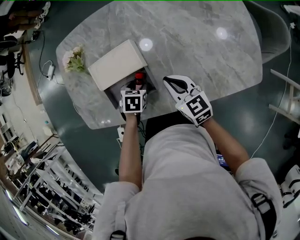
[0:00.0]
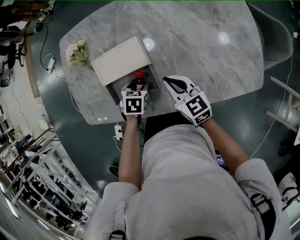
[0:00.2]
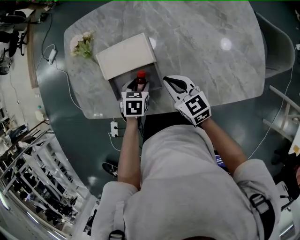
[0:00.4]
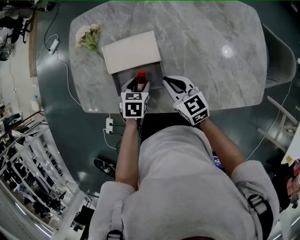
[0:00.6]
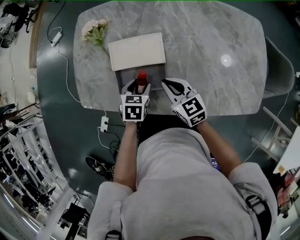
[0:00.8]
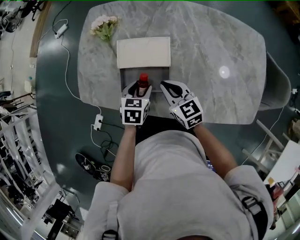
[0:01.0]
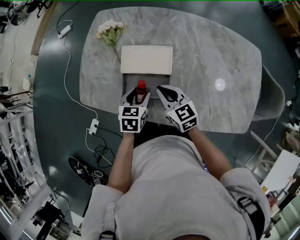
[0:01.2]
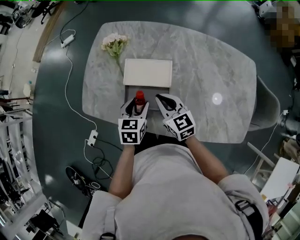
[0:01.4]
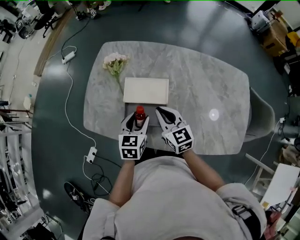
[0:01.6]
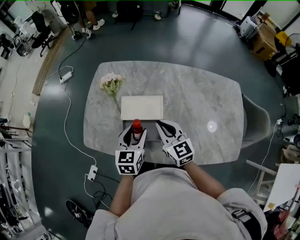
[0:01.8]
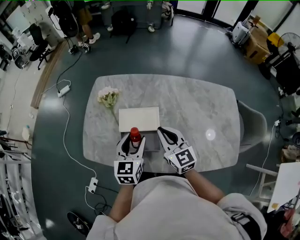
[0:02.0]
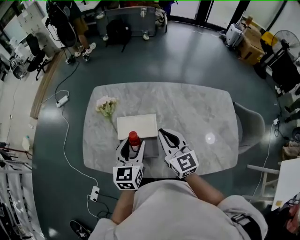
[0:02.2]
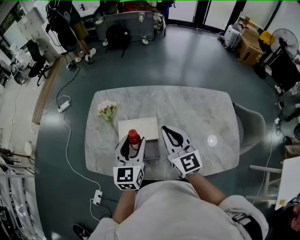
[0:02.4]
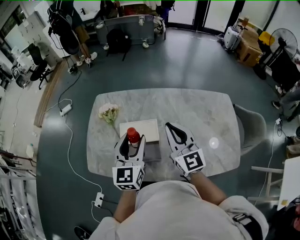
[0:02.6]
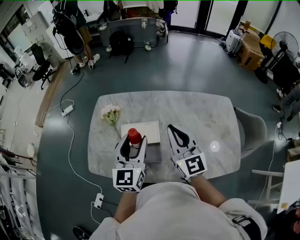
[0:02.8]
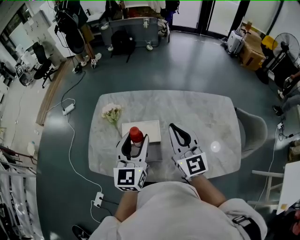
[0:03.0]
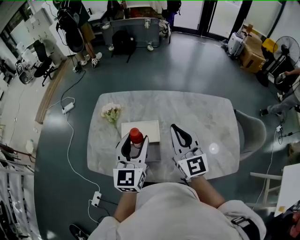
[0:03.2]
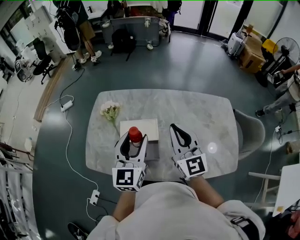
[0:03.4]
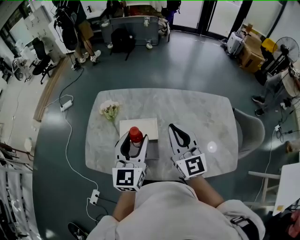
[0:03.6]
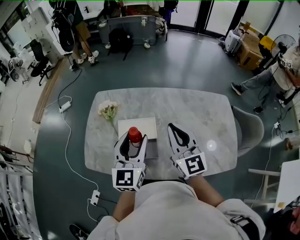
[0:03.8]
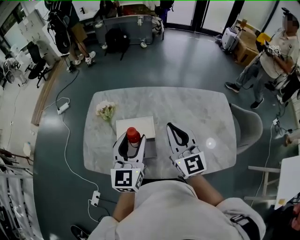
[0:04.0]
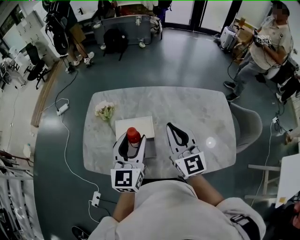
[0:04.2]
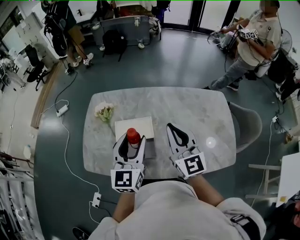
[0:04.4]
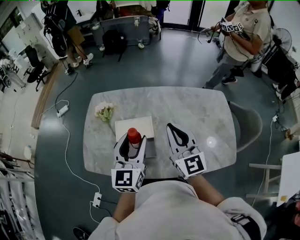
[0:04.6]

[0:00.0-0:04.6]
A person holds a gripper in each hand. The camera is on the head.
0:00.0 to 0:01.6: The right gripper travels to the left and upward by about 15 cm; the left gripper heads upward, covering approximately 20 cm, and points its fingers approximately 40 degrees further upward.
0:01.6 to 0:03.0: The left gripper goes approximately 20 cm upward, and points its fingers some 30 degrees further upward. The right gripper travels upward and to the right by approximately 20 cm, and changes its angle by approximately 30 degrees.
0:03.0 to 0:04.6: The grippers stay close to where they were, moving slightly.

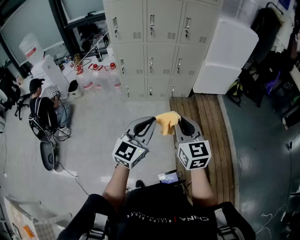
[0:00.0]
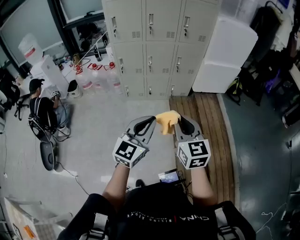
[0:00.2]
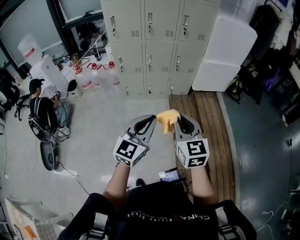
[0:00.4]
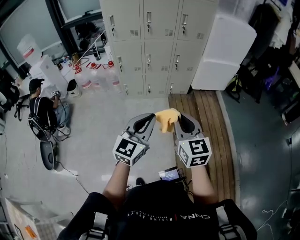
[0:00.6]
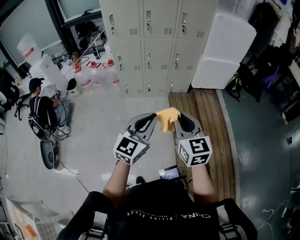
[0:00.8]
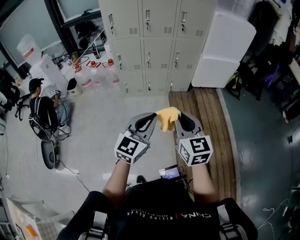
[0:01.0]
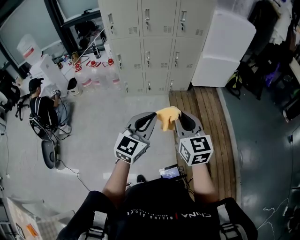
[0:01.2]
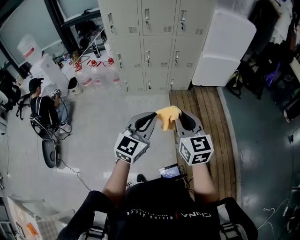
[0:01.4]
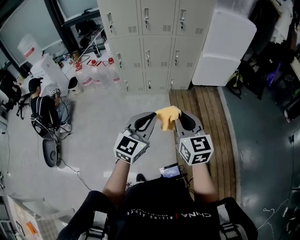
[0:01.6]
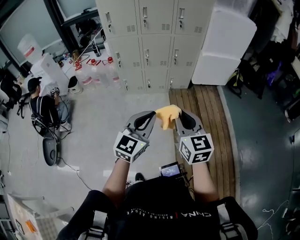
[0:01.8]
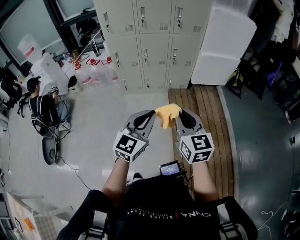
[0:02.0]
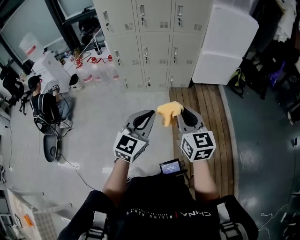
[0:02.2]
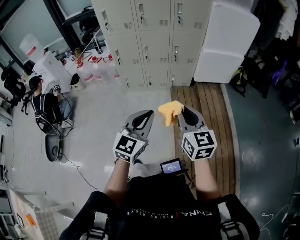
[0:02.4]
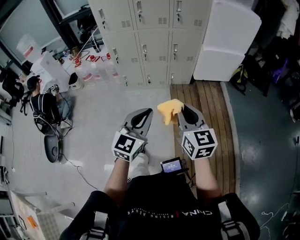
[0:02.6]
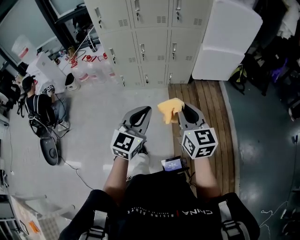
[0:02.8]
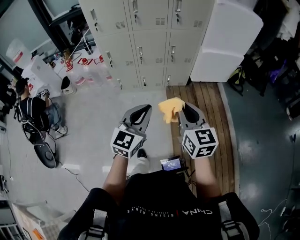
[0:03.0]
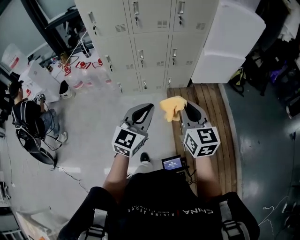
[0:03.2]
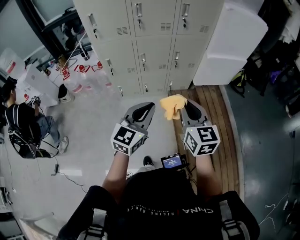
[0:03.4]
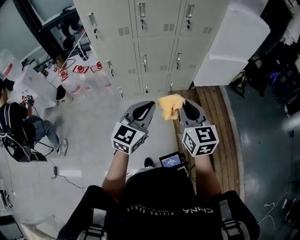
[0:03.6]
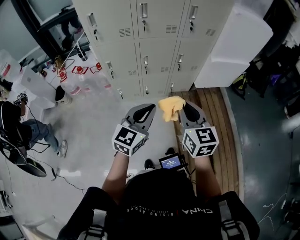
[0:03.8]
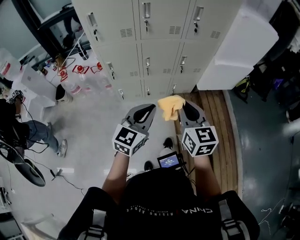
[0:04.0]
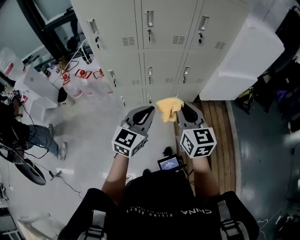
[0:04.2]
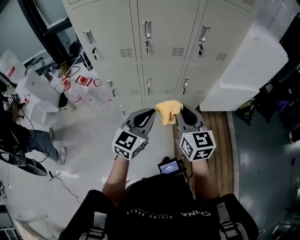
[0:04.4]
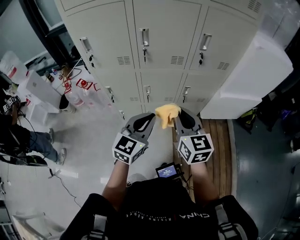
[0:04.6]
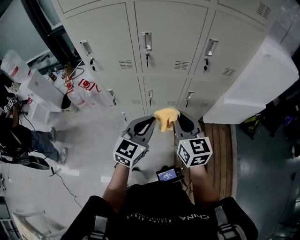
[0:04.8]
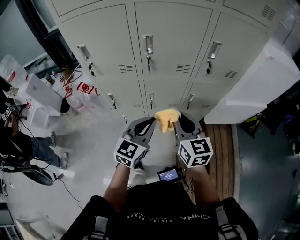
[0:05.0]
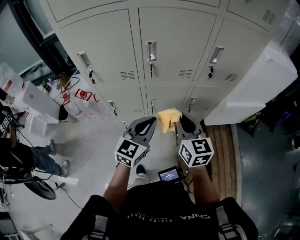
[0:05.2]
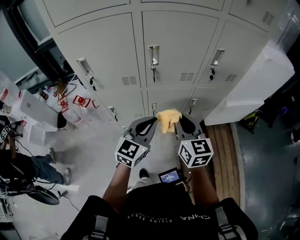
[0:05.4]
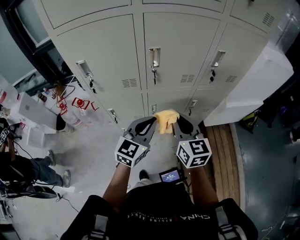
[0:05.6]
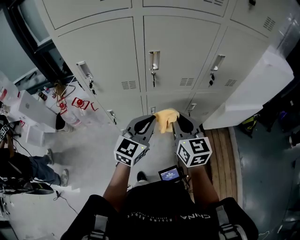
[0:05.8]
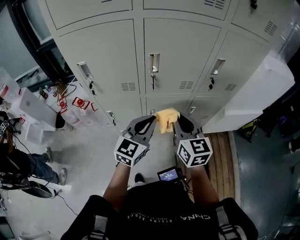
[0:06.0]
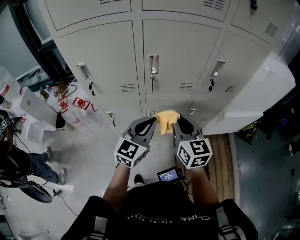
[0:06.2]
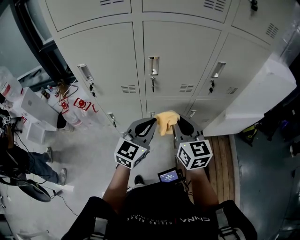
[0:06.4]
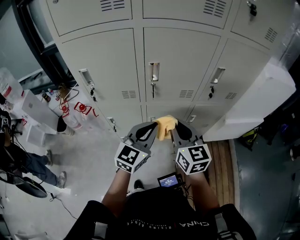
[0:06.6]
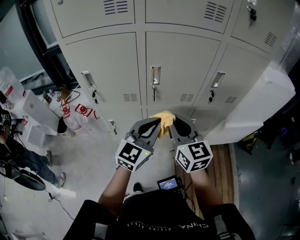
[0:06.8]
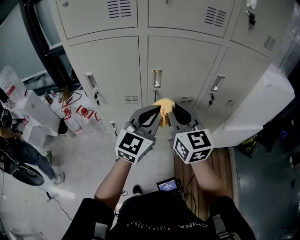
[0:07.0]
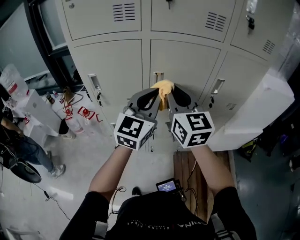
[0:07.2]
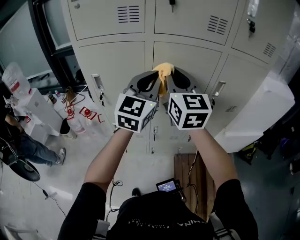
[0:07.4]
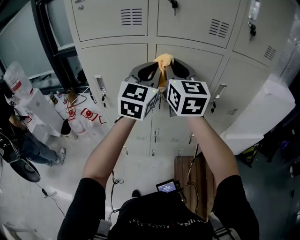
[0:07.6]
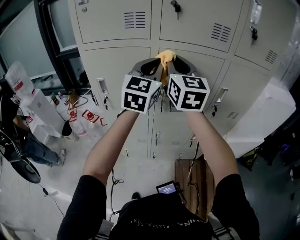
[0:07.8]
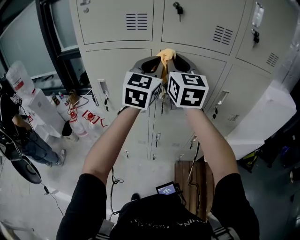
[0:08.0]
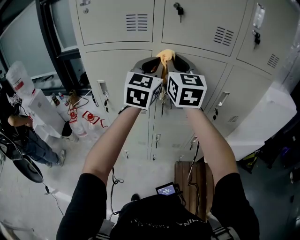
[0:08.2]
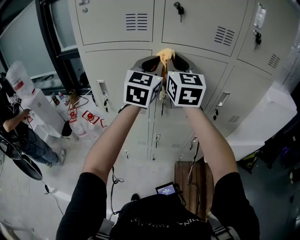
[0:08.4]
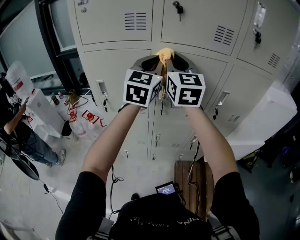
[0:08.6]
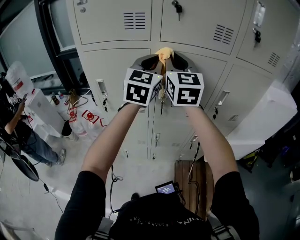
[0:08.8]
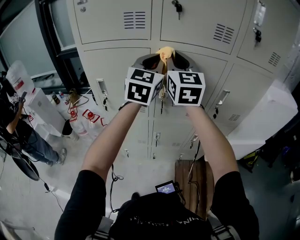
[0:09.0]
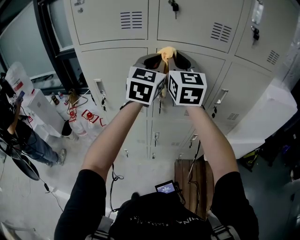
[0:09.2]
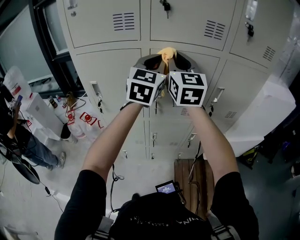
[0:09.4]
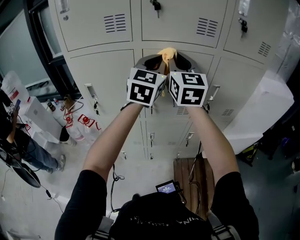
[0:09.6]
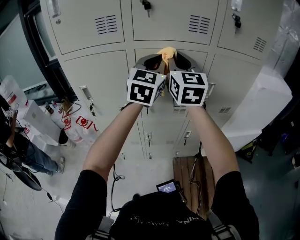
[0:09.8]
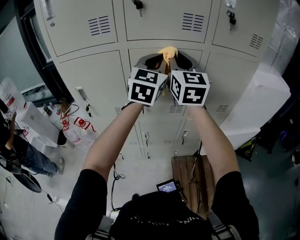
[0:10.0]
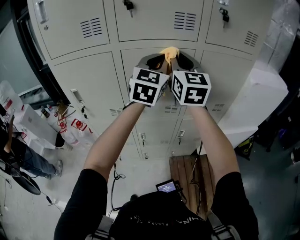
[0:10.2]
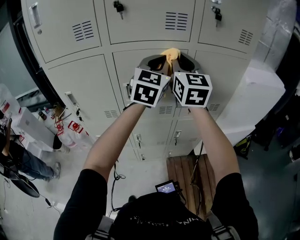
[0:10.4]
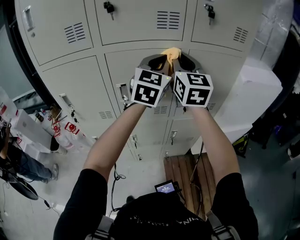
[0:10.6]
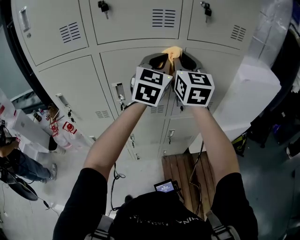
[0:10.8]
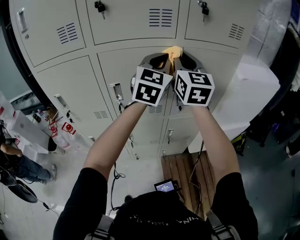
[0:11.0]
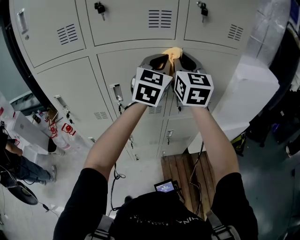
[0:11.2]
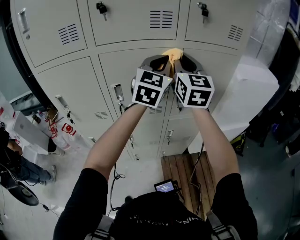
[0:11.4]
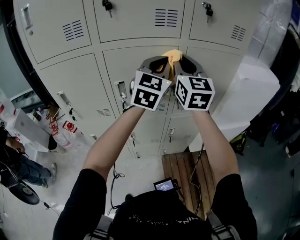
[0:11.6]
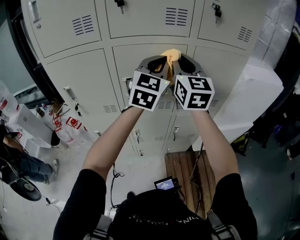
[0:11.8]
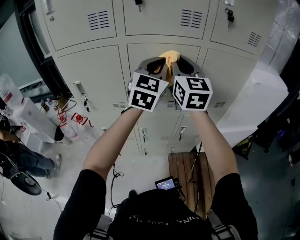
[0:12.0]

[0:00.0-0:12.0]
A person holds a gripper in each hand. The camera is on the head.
0:00.0 to 0:01.6: There are only small adjustments of the grippers.
0:01.6 to 0:03.0: Both grippers move forward, about 15 cm.
0:03.0 to 0:04.4: The left gripper travels forward by approximately 35 cm; the right gripper travels forward and to the left by approximately 35 cm.
0:04.4 to 0:06.0: The left gripper heads forward, covering some 20 cm; the right gripper travels forward and to the left by approximately 20 cm.
0:06.0 to 0:07.6: The two grippers go some 30 cm upward and forward. The right gripper turns by approximately 20 degrees; the left gripper rotates some 20 degrees.
0:07.6 to 0:09.0: The left gripper shifts approximately 5 cm forward, while the right gripper moves approximately 5 cm.
0:09.0 to 0:10.4: Both grippers move to the right, roughly 20 cm.
0:10.4 to 0:12.0: The right gripper ends up roughly 5 cm from where it was; the left gripper ends up approximately 5 cm from where it was.

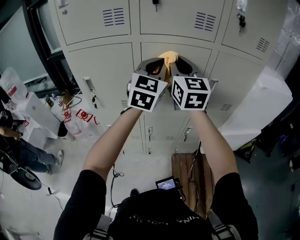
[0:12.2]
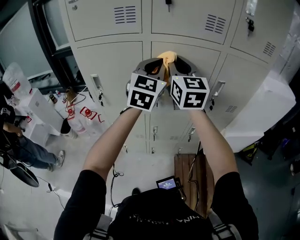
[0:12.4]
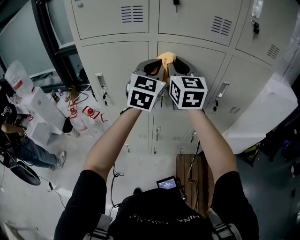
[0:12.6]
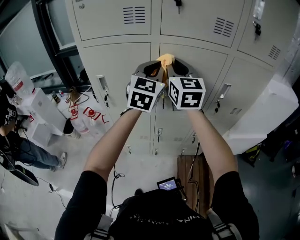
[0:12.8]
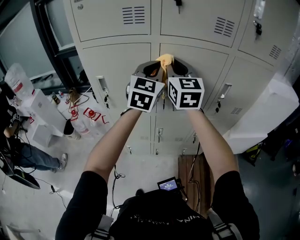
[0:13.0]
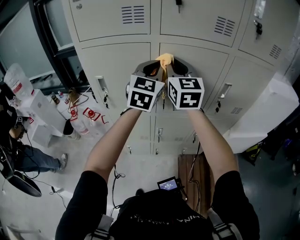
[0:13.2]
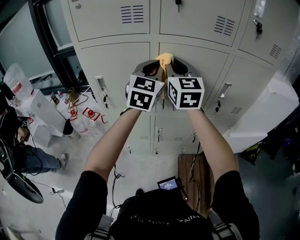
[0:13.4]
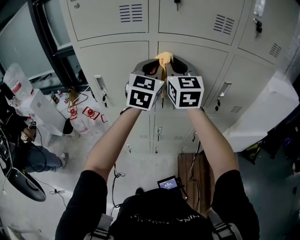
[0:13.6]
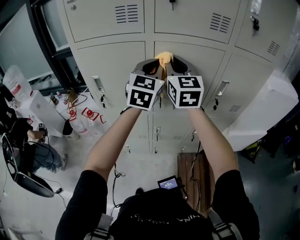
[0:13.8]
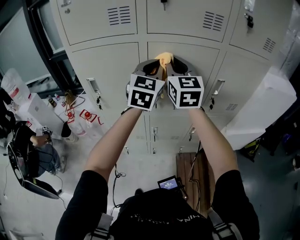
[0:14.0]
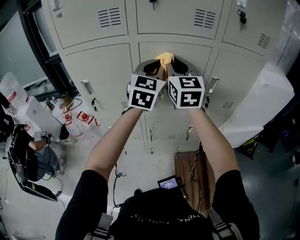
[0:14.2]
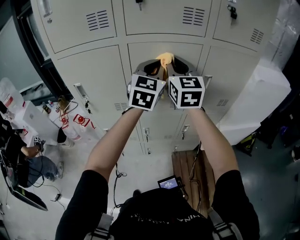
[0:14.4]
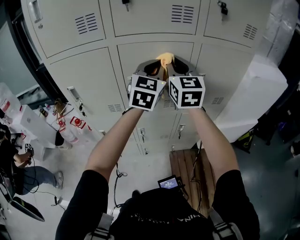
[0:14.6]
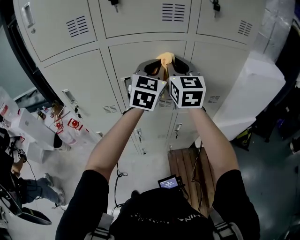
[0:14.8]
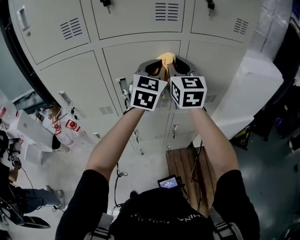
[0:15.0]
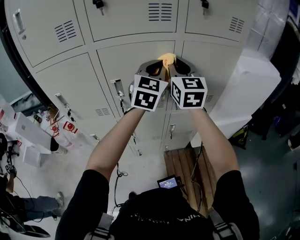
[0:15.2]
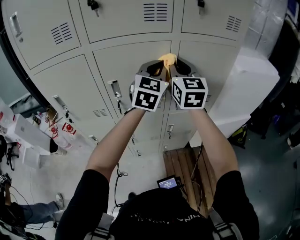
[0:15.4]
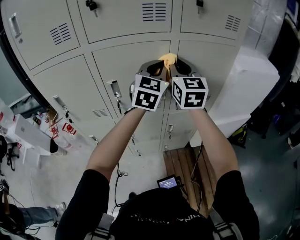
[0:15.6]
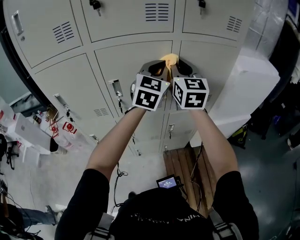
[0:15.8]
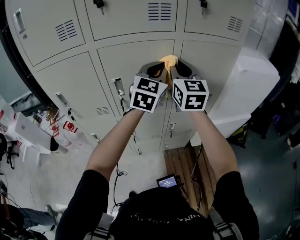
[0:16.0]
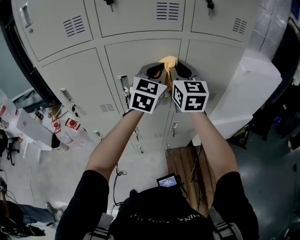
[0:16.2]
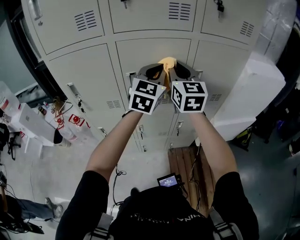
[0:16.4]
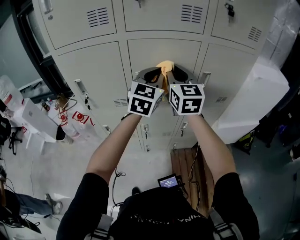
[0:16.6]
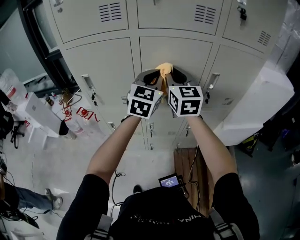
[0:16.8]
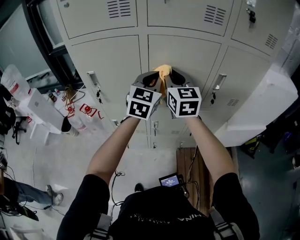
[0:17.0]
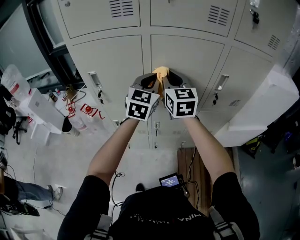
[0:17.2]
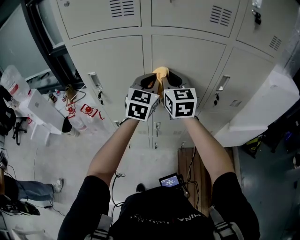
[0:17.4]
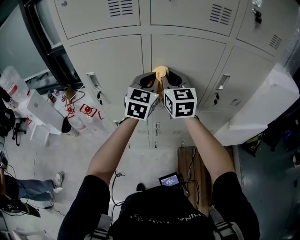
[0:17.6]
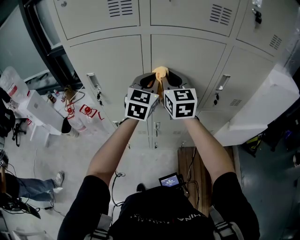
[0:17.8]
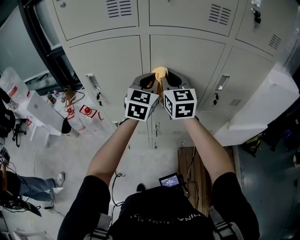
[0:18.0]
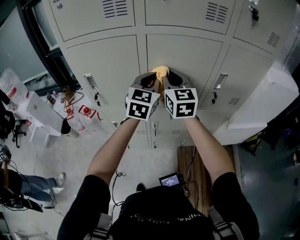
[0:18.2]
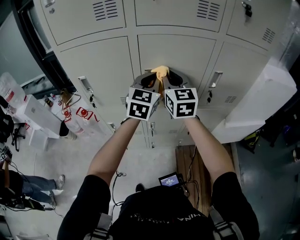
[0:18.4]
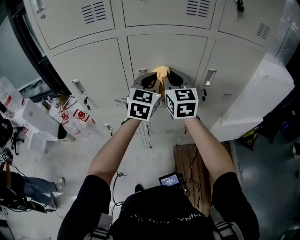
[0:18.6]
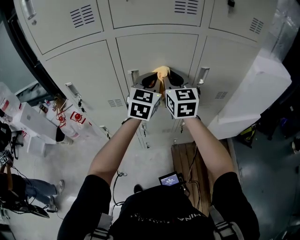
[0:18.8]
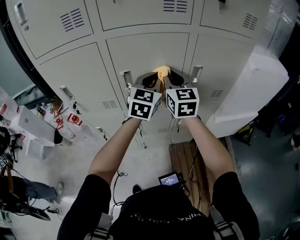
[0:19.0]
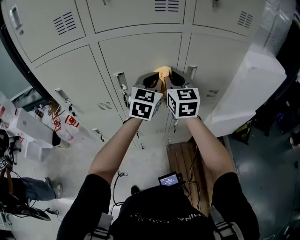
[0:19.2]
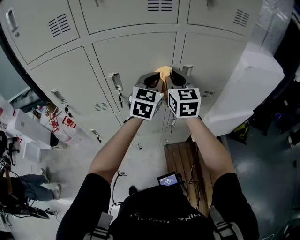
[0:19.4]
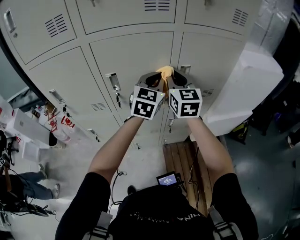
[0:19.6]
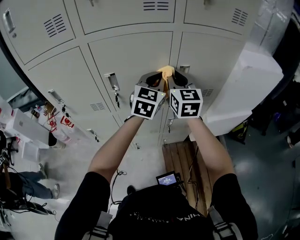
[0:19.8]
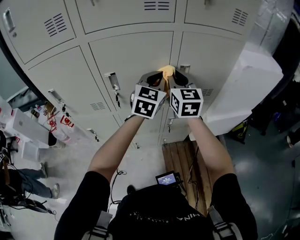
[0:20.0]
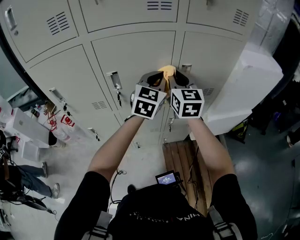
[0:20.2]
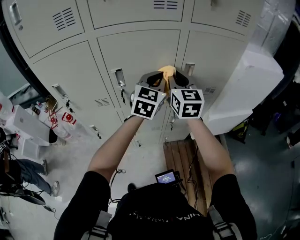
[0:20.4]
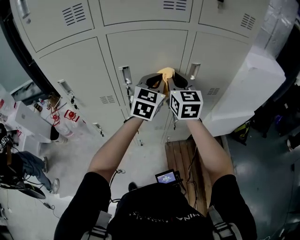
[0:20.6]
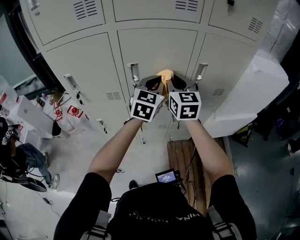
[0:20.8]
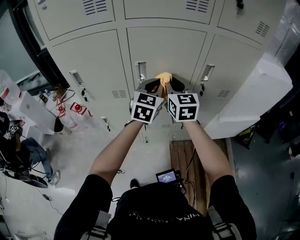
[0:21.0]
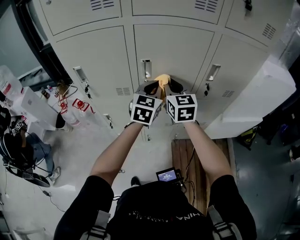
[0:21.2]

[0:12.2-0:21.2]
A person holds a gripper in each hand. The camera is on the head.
0:12.2 to 0:13.8: Both grippers move to the left, roughly 5 cm.
0:13.8 to 0:15.2: Both grippers move to the right, about 20 cm.
0:15.2 to 0:16.6: The left gripper shifts some 10 cm to the left and backward. The right gripper goes approximately 10 cm to the left.
0:16.6 to 0:18.2: The grippers both shift to the left and downward by about 10 cm.
0:18.2 to 0:19.8: Both grippers travel together to the right, roughly 20 cm.
0:19.8 to 0:21.2: The two grippers go some 15 cm to the left and downward.
